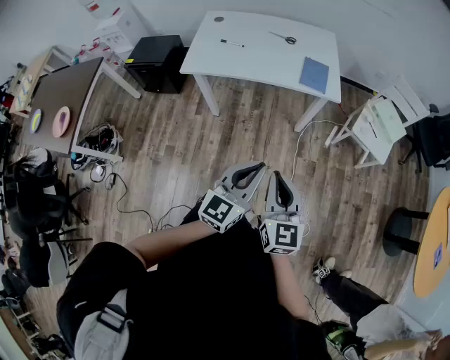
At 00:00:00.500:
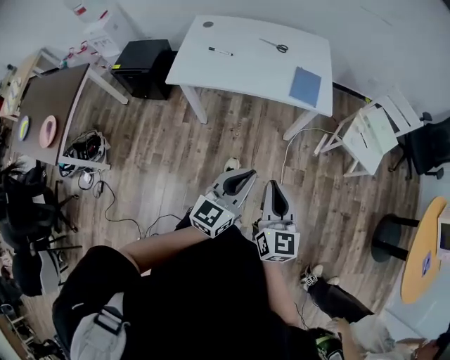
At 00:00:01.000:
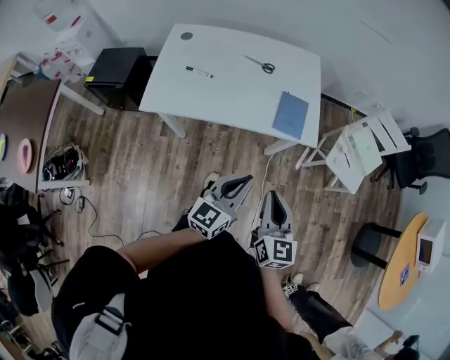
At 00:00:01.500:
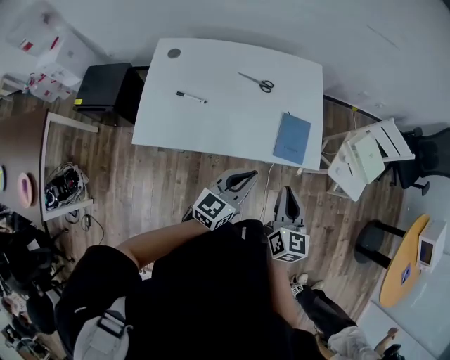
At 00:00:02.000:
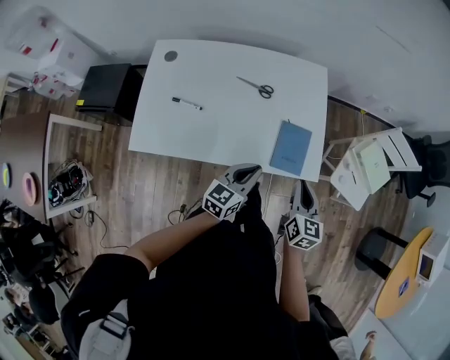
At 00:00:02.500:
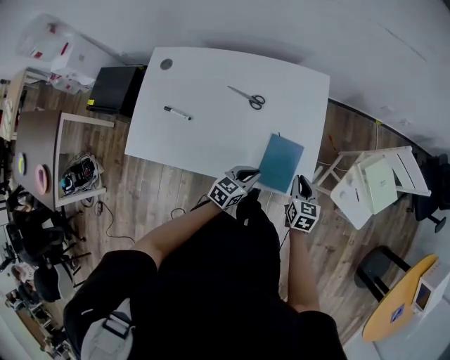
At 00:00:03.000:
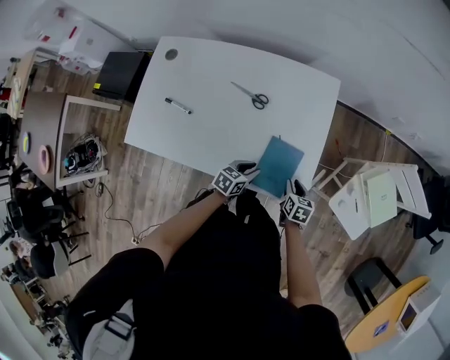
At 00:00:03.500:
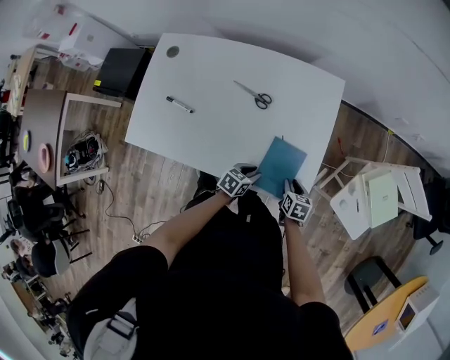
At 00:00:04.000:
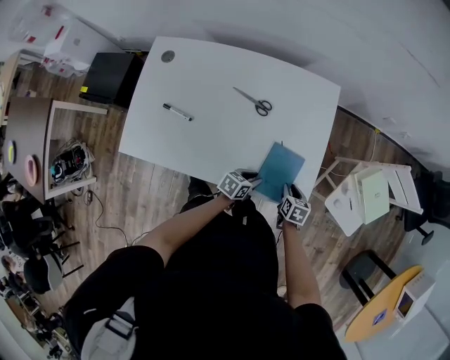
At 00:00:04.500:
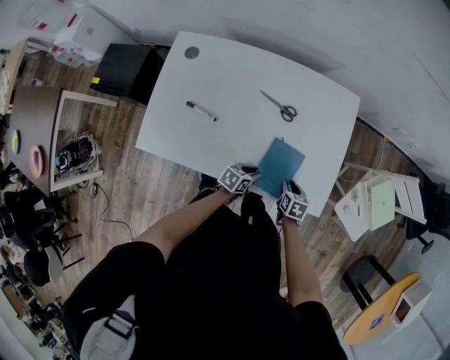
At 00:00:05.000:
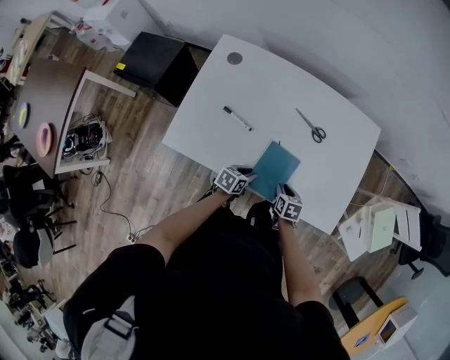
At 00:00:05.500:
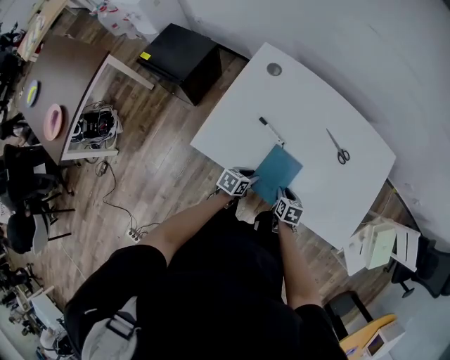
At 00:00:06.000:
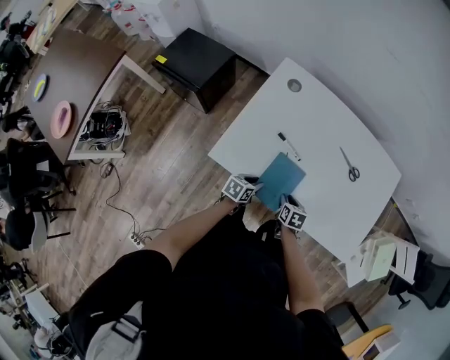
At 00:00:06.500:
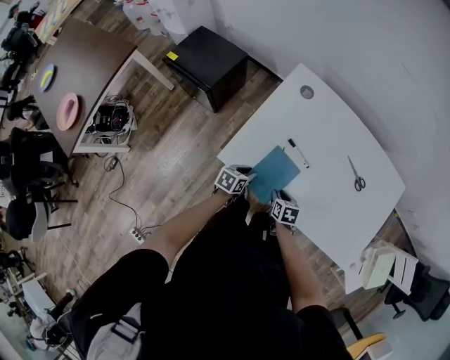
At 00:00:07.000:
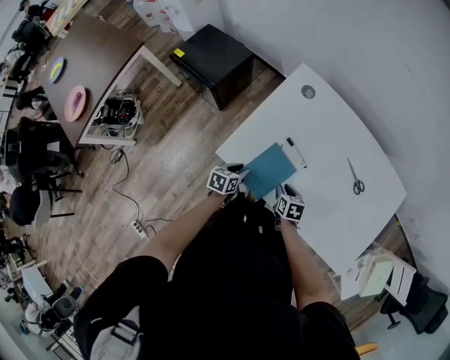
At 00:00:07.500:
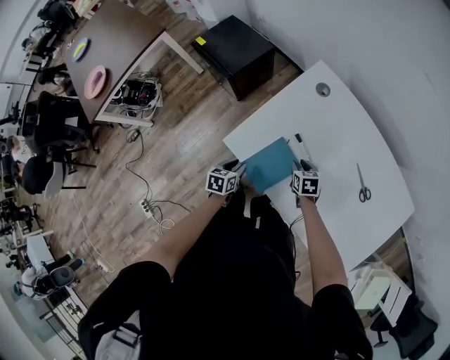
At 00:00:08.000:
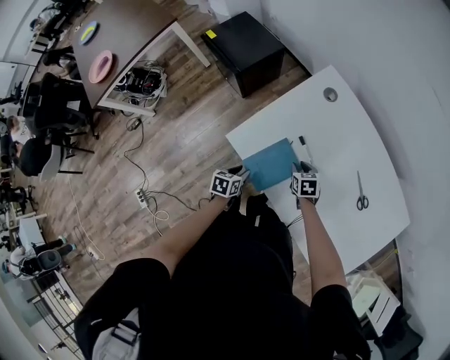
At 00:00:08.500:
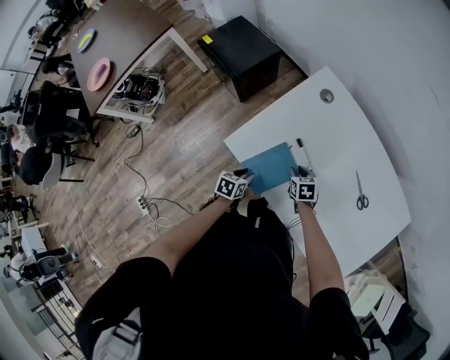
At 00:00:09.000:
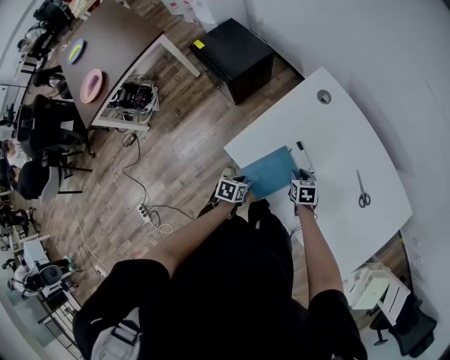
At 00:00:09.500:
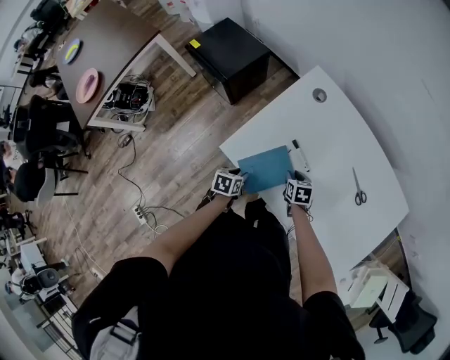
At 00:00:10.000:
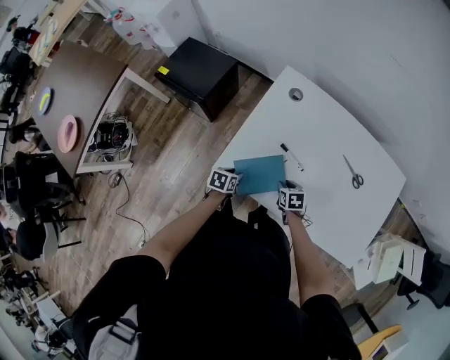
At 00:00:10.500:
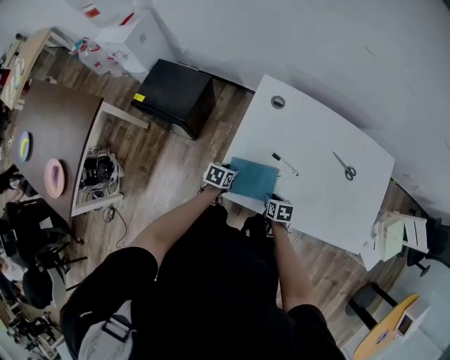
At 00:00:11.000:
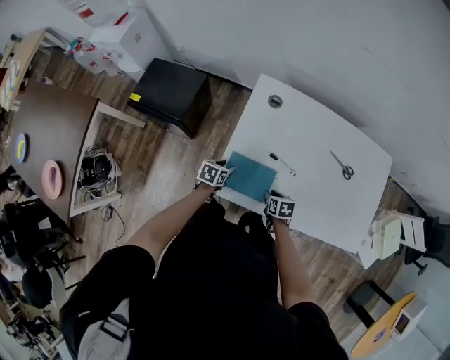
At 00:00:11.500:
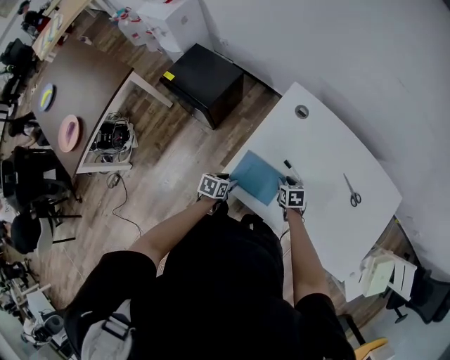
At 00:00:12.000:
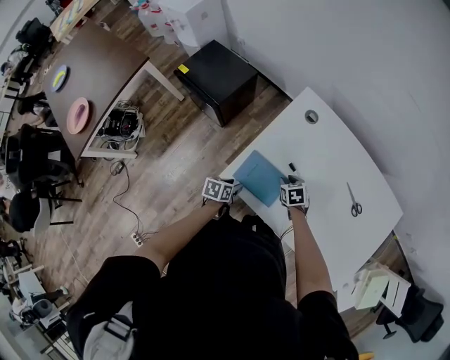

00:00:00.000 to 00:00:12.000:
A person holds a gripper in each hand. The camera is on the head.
00:00:00.000 to 00:00:02.000: The two grippers travel together, forward, approximately 50 cm. The right gripper rotates approximately 20 degrees; the left gripper rotates some 20 degrees.
00:00:02.000 to 00:00:04.000: The left gripper shifts approximately 25 cm downward, changes its angle by approximately 40 degrees, and opens; the right gripper is displaced downward and forward by some 30 cm, and points its fingers approximately 30 degrees further downward.
00:00:04.000 to 00:00:06.000: The pair of grippers is taken to the left, approximately 40 cm. The left gripper turns by some 20 degrees.
00:00:06.000 to 00:00:08.000: The left gripper shifts by roughly 10 cm, and swivels some 40 degrees. The right gripper shifts by about 15 cm, and changes its angle by roughly 40 degrees.
00:00:08.000 to 00:00:10.000: The right gripper moves backward, some 5 cm, and rotates about 20 degrees. The left gripper travels forward by some 10 cm, and swivels about 20 degrees.
00:00:10.000 to 00:00:12.000: The right gripper moves forward and to the left, approximately 10 cm; the left gripper goes forward and returns, approximately 10 cm each way.

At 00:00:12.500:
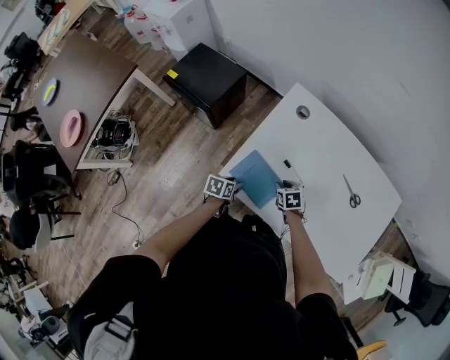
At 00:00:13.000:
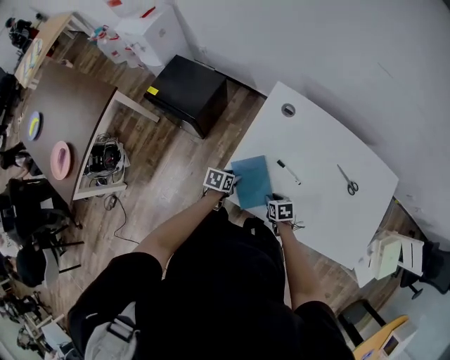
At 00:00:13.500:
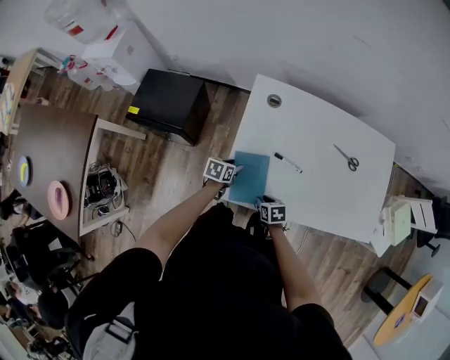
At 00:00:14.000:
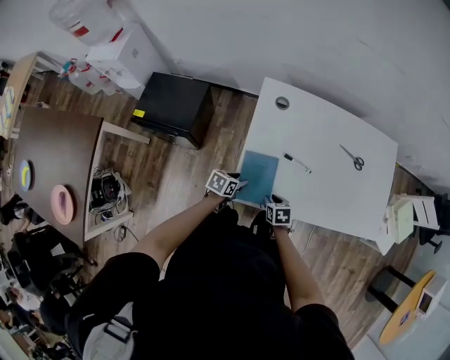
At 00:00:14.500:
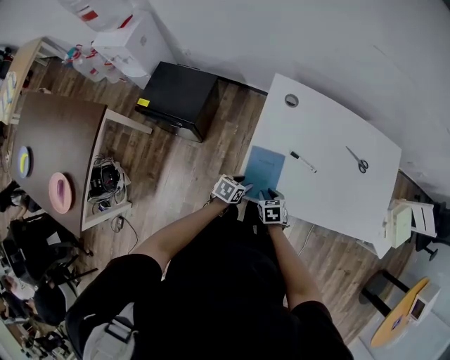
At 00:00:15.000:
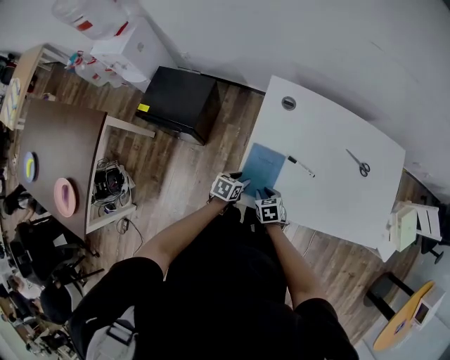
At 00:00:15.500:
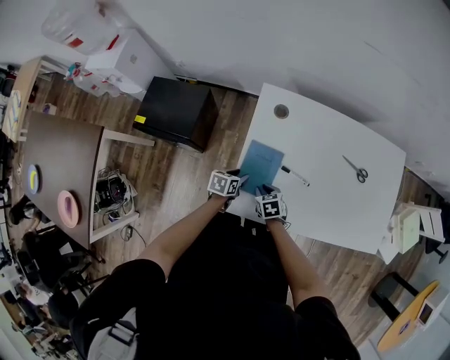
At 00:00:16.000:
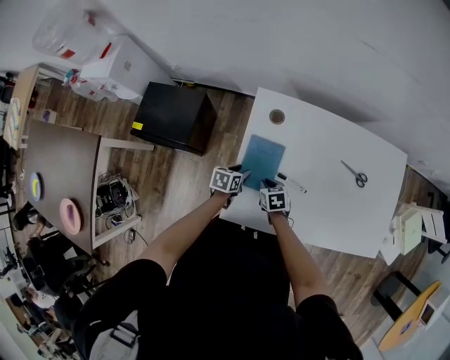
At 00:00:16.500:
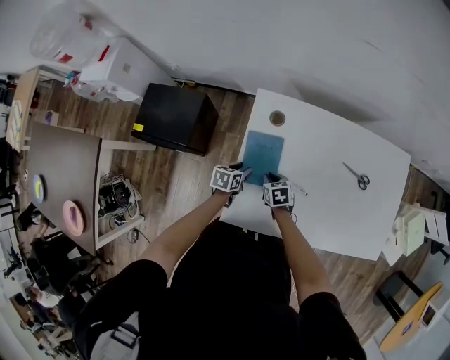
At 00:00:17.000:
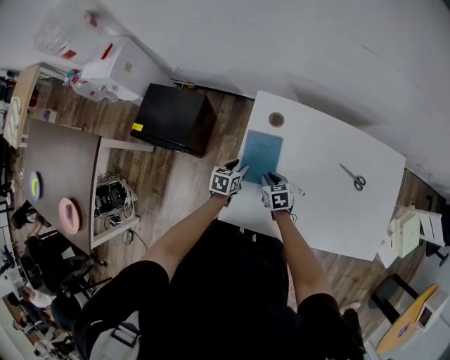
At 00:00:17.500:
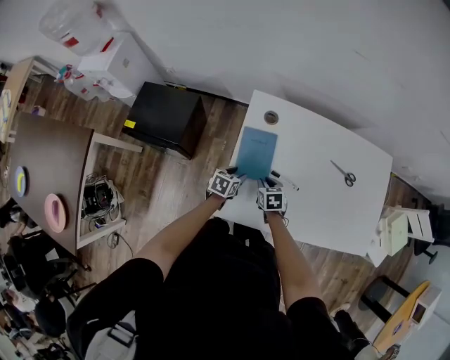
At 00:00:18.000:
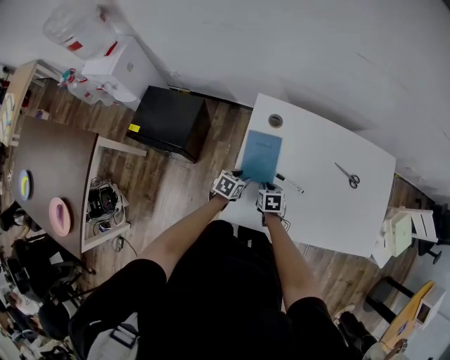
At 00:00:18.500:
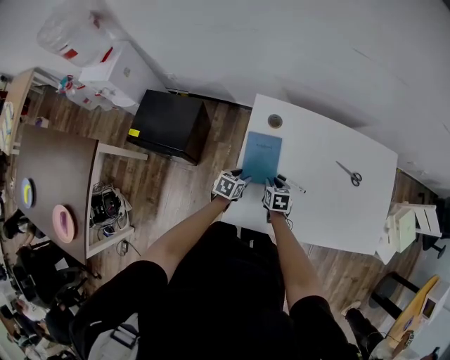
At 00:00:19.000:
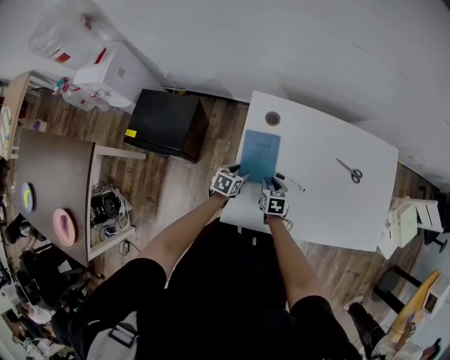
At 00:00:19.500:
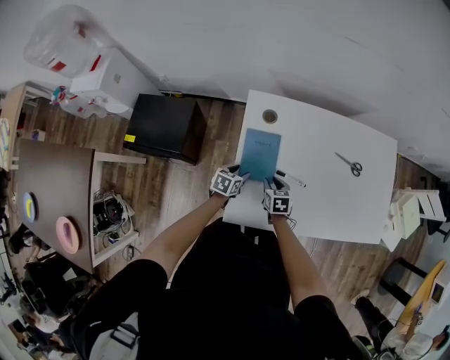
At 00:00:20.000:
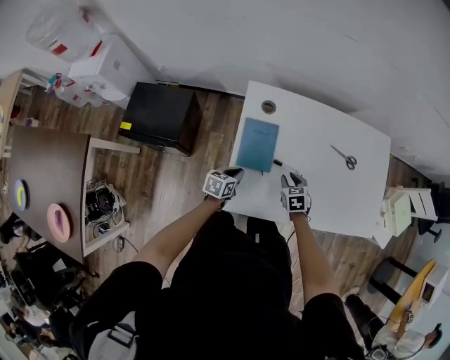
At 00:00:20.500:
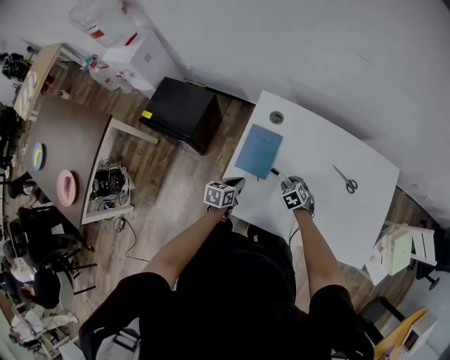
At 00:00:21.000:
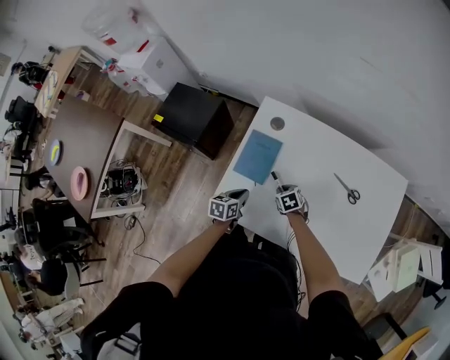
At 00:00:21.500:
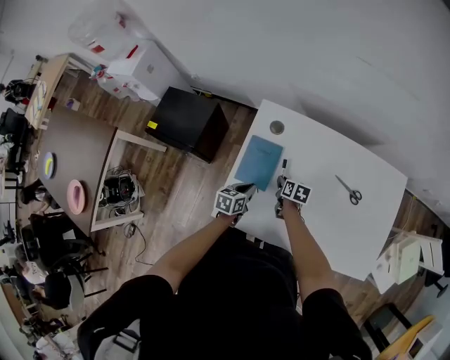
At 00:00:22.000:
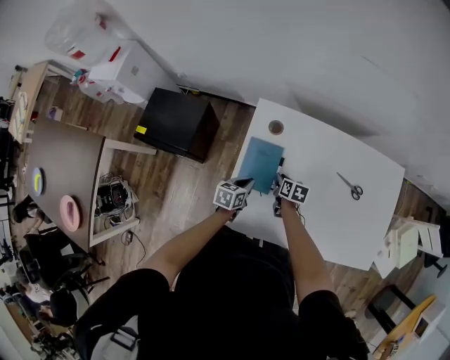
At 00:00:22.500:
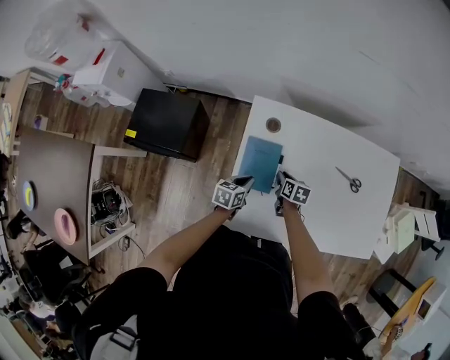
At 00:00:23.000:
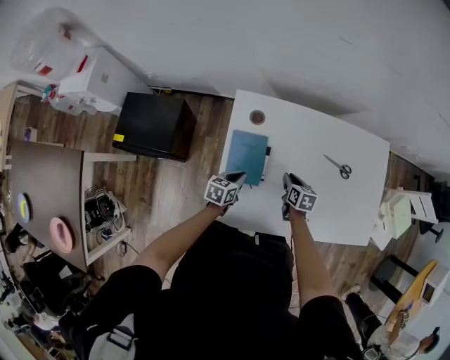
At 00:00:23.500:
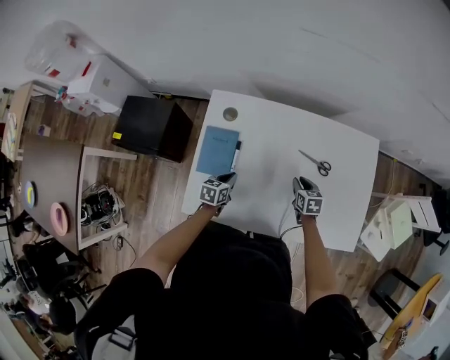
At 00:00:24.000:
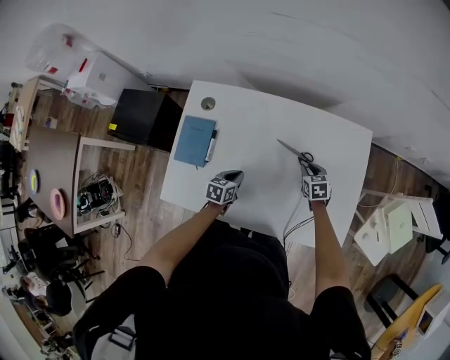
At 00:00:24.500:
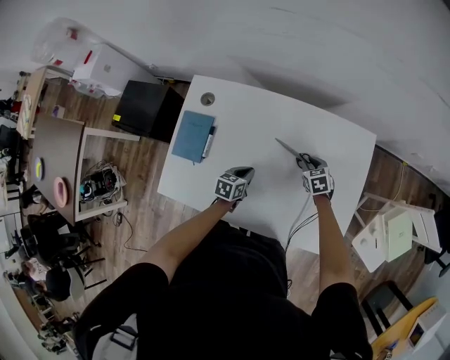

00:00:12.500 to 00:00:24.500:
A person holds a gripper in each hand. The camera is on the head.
00:00:12.500 to 00:00:14.500: The right gripper moves some 15 cm, and turns by approximately 20 degrees; the left gripper swivels roughly 30 degrees.
00:00:14.500 to 00:00:16.500: Both grippers move forward, roughly 20 cm.
00:00:16.500 to 00:00:18.500: The grippers make only small movements.
00:00:18.500 to 00:00:20.500: The left gripper goes roughly 5 cm backward, turns by roughly 20 degrees, and closes up, while the right gripper moves to the right, roughly 10 cm, and rotates around the line of its fingers by some 40 degrees, counterclockwise from behind.
00:00:20.500 to 00:00:22.500: The left gripper changes place by approximately 10 cm, while the right gripper ends up about 10 cm from where it was, and rotates around the line of its fingers by approximately 60 degrees, clockwise from behind.
00:00:22.500 to 00:00:24.500: Both grippers move to the right, about 35 cm. The right gripper rolls counterclockwise, seen from behind, by some 40 degrees.

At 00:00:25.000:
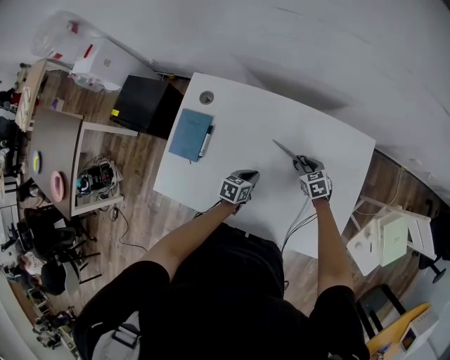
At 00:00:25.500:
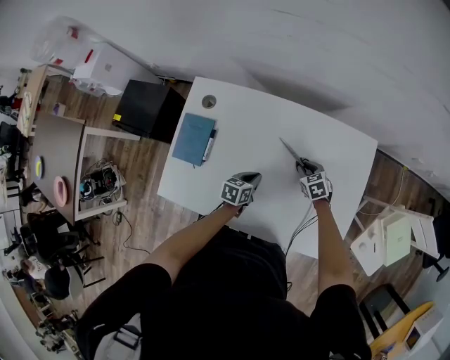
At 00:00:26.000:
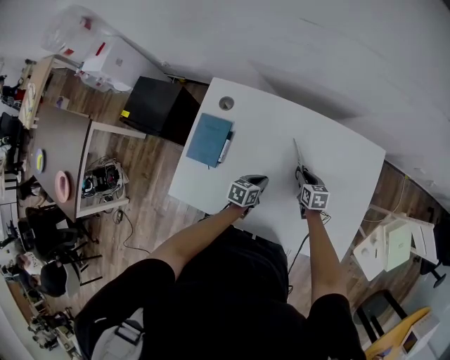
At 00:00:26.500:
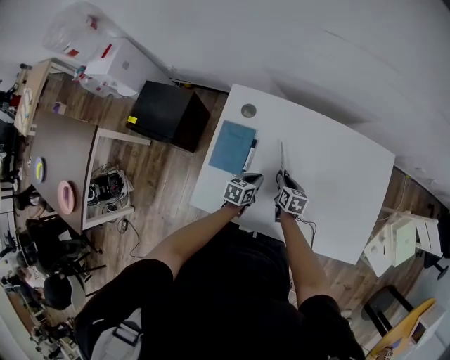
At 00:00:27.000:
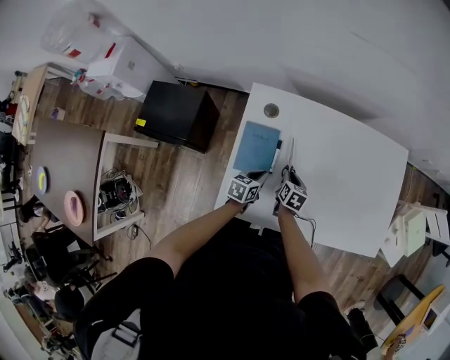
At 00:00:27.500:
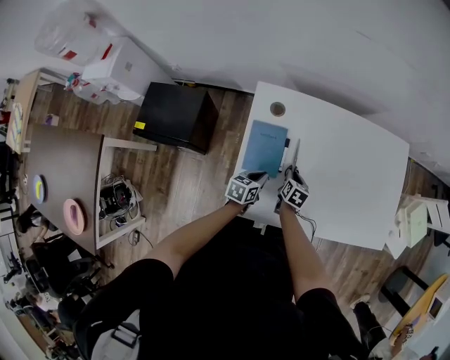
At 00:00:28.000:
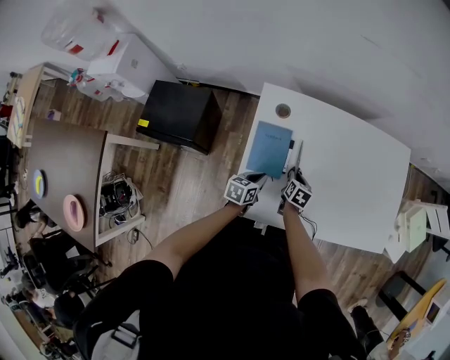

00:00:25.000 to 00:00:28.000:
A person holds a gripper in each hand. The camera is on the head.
00:00:25.000 to 00:00:26.500: Both grippers move to the left, about 20 cm. The right gripper swivels roughly 40 degrees.
00:00:26.500 to 00:00:28.000: The right gripper shifts about 10 cm to the left; the left gripper is displaced to the left and backward by about 15 cm.
